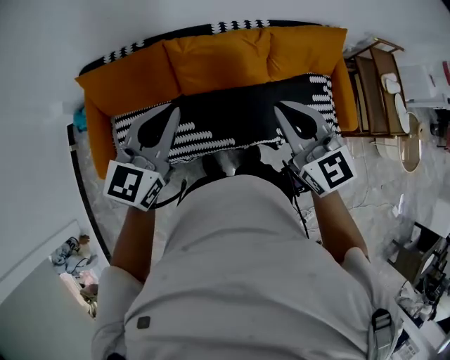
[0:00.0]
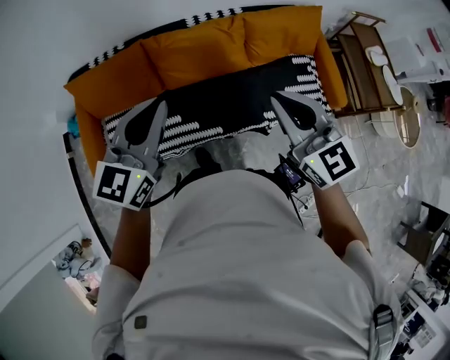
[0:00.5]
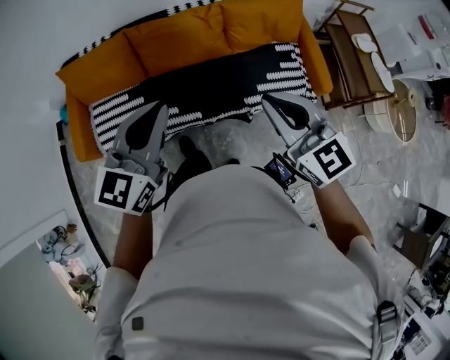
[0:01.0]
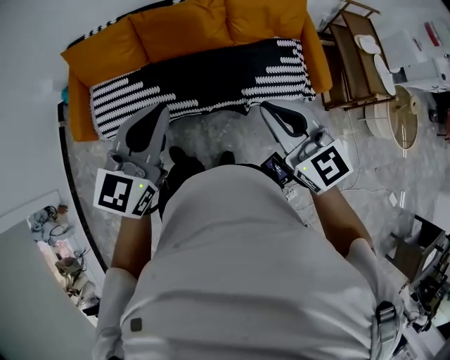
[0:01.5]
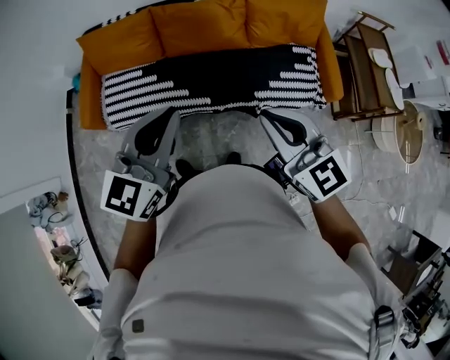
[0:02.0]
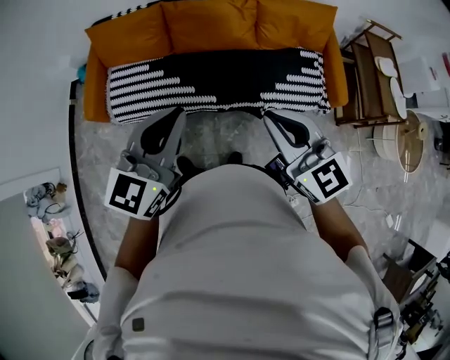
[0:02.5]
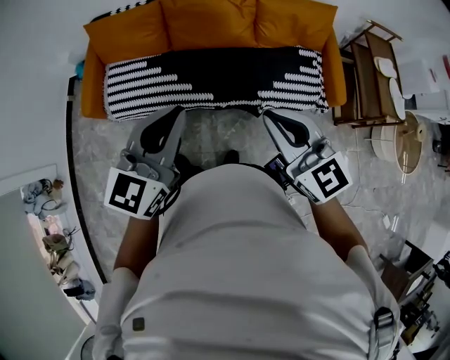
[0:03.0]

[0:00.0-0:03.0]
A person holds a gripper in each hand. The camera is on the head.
0:00.0 to 0:01.5: The two grippers go about 35 cm backward and to the right.
0:01.5 to 0:03.0: The right gripper travels to the left by some 5 cm, while the left gripper ends up about 5 cm from where it was.

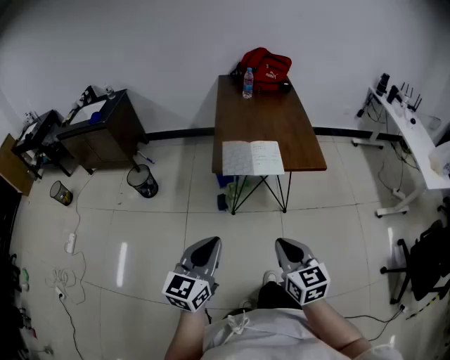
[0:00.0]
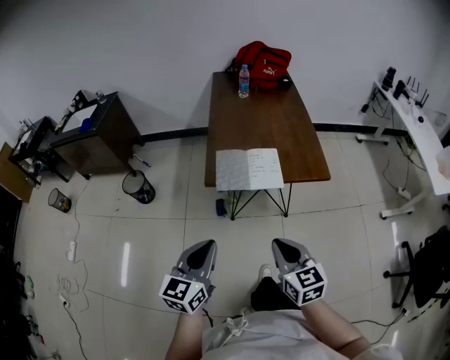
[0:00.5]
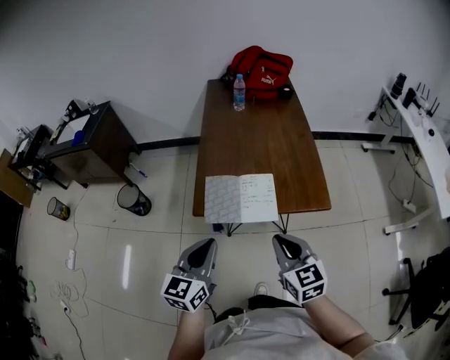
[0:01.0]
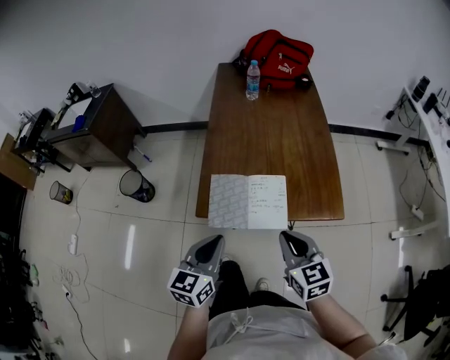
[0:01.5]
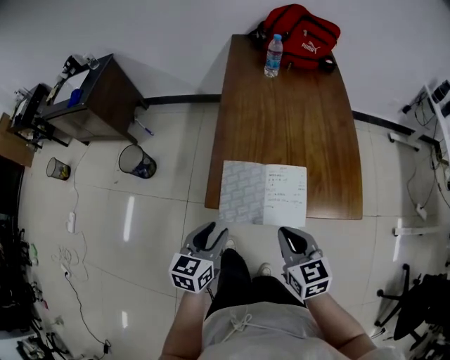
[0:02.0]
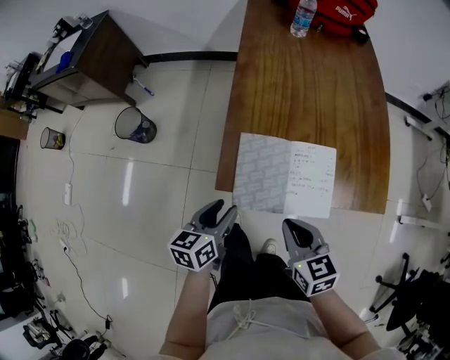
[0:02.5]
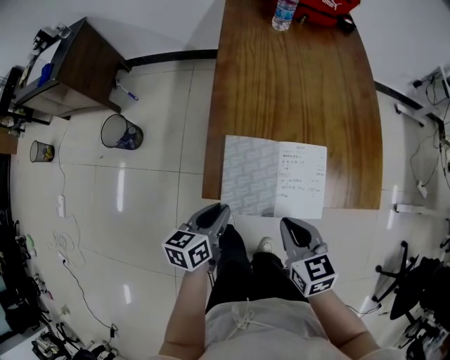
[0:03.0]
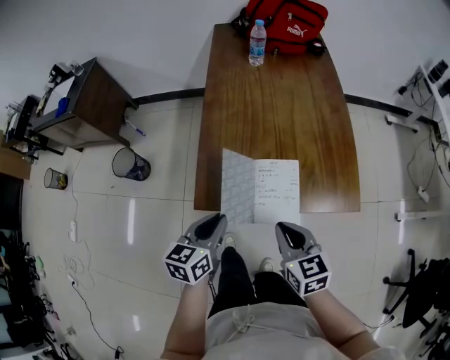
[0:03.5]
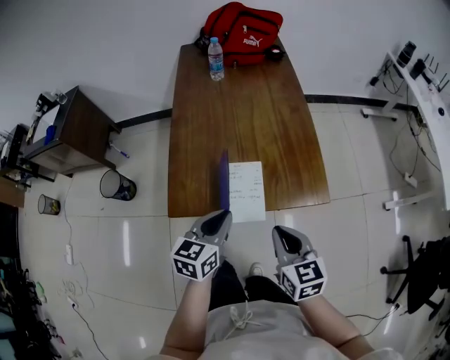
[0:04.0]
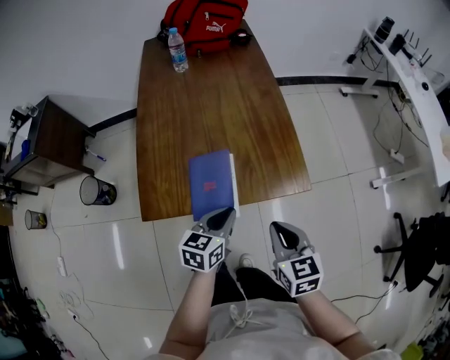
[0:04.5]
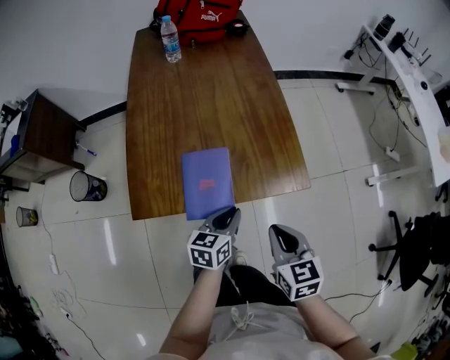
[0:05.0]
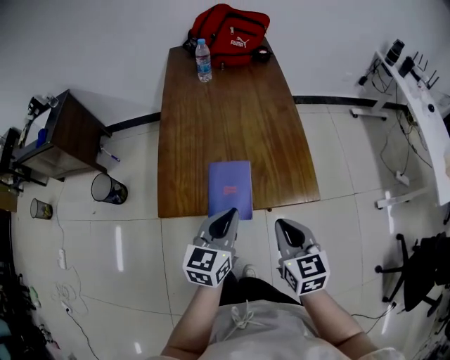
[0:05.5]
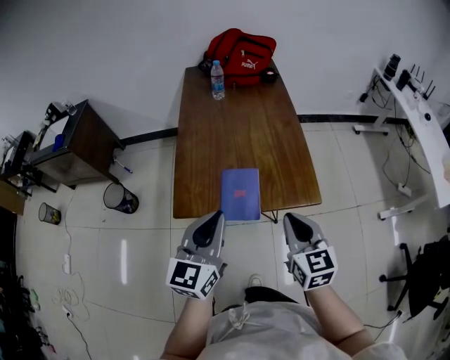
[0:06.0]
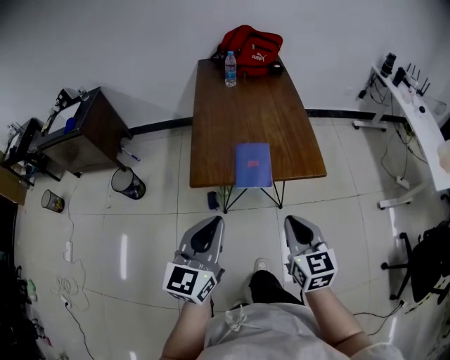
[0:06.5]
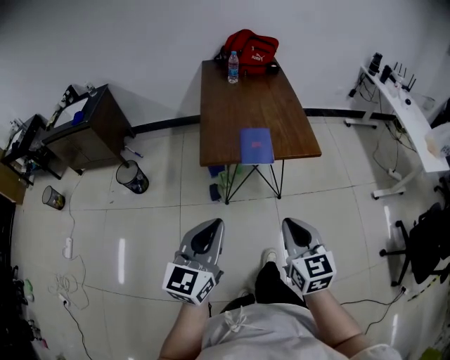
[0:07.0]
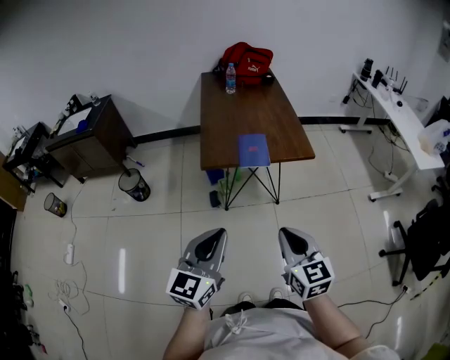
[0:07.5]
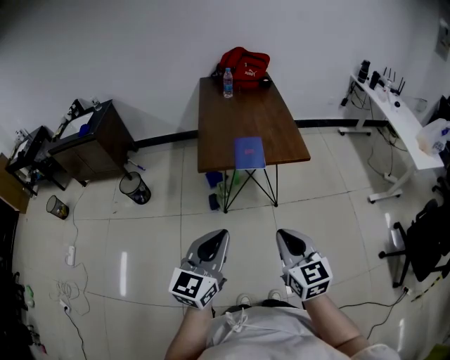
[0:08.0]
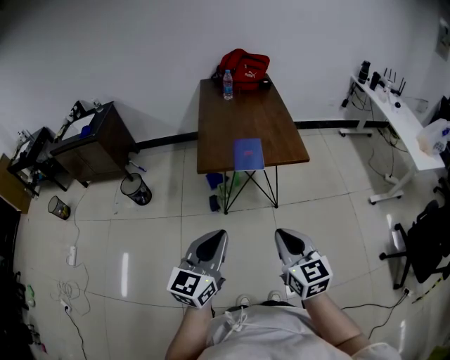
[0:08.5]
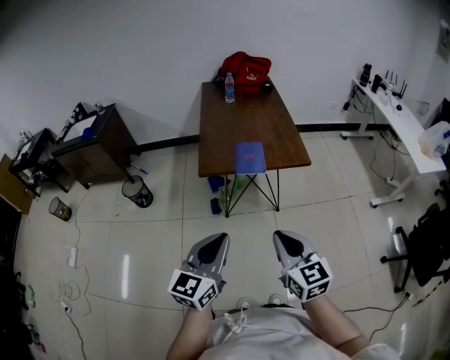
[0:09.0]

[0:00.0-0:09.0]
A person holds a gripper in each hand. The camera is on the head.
0:00.0 to 0:02.0: The left gripper shifts some 40 cm forward and downward, rotates about 20 degrees, and opens; the right gripper heads forward, covering approximately 35 cm.
0:02.0 to 0:04.5: Both grippers move to the right, some 20 cm. The left gripper changes its angle by approximately 20 degrees, and closes up.
0:04.5 to 0:07.0: The left gripper is displaced backward, upward and to the left by some 50 cm, and turns by some 30 degrees; the right gripper moves backward and upward, some 35 cm.
0:07.0 to 0:09.0: The right gripper is displaced backward by roughly 5 cm. The left gripper goes about 10 cm backward and to the right.

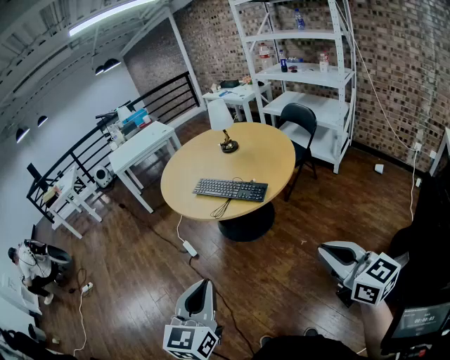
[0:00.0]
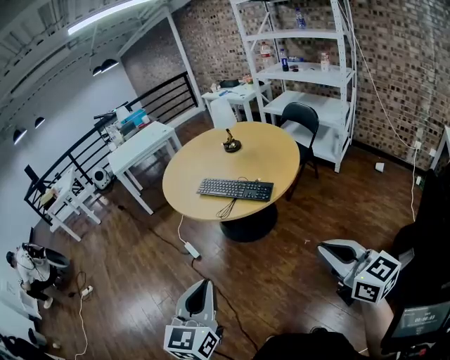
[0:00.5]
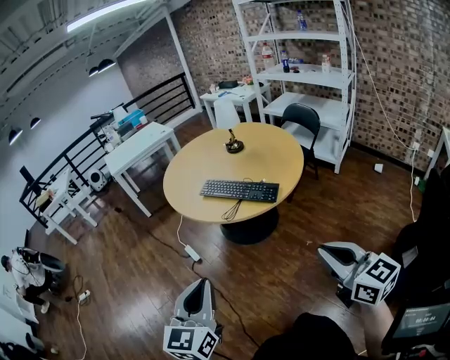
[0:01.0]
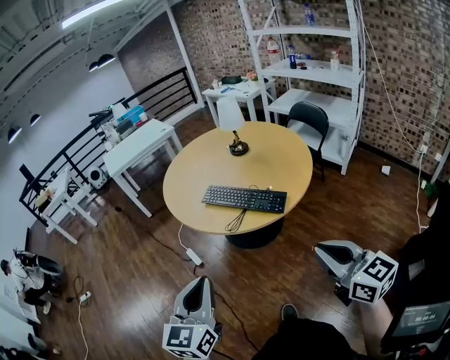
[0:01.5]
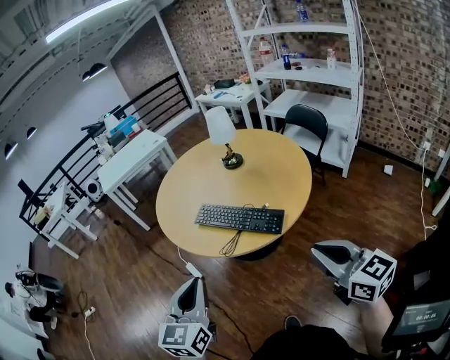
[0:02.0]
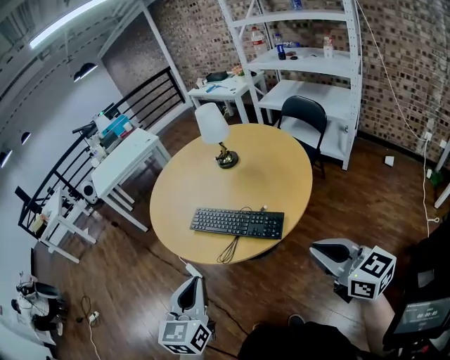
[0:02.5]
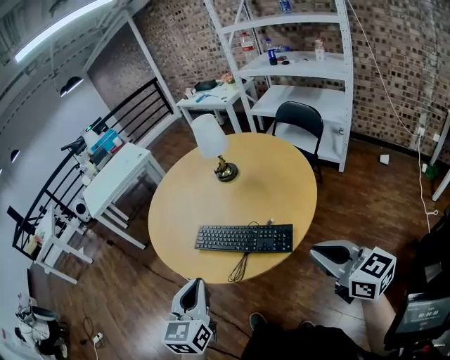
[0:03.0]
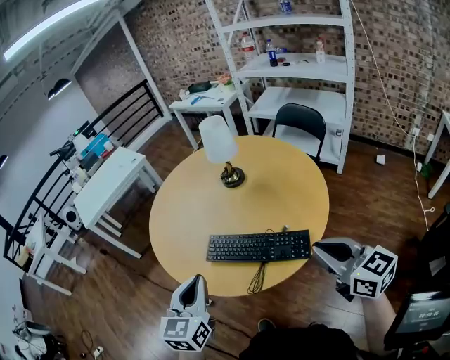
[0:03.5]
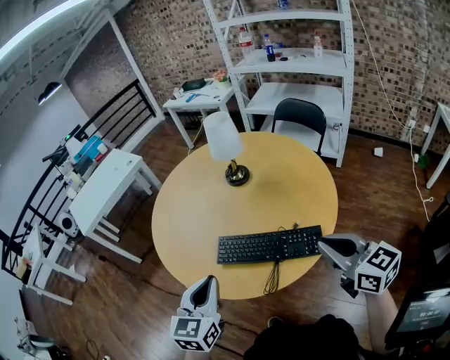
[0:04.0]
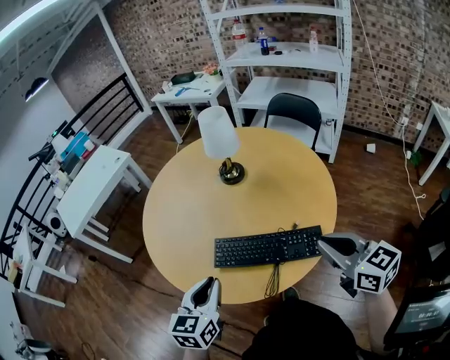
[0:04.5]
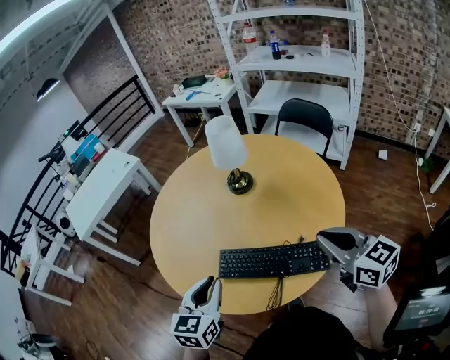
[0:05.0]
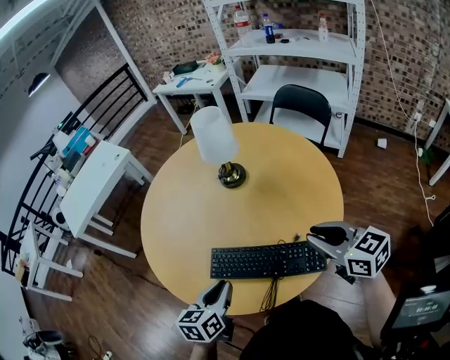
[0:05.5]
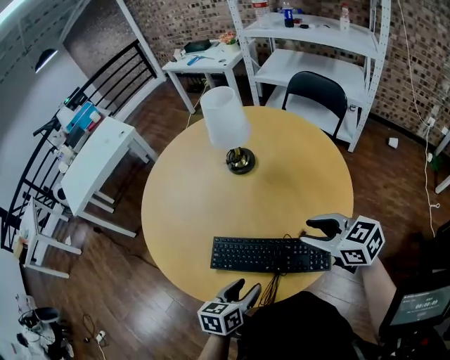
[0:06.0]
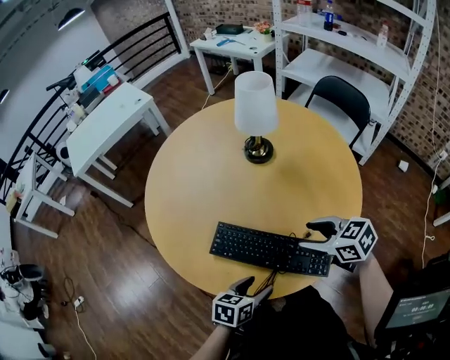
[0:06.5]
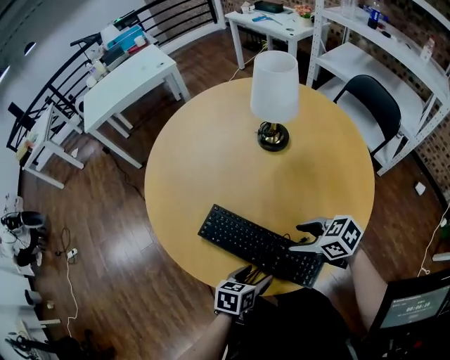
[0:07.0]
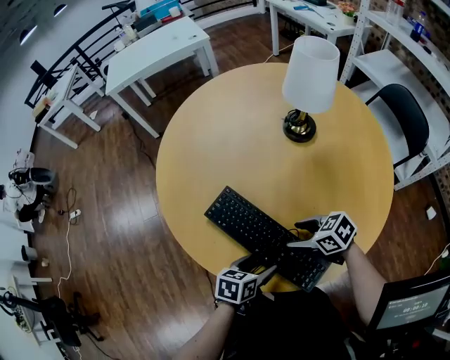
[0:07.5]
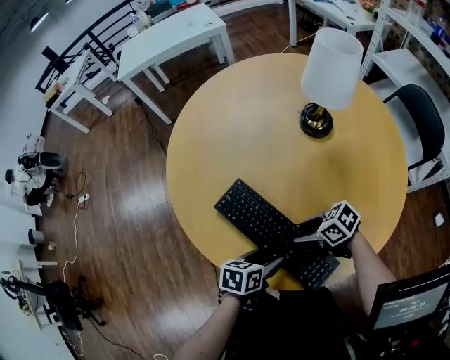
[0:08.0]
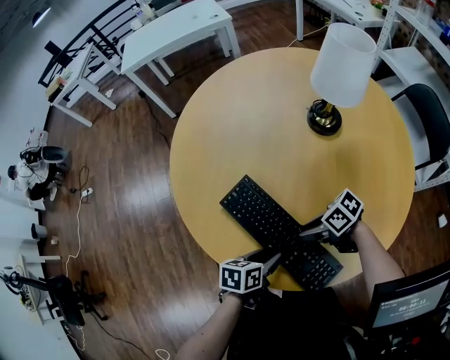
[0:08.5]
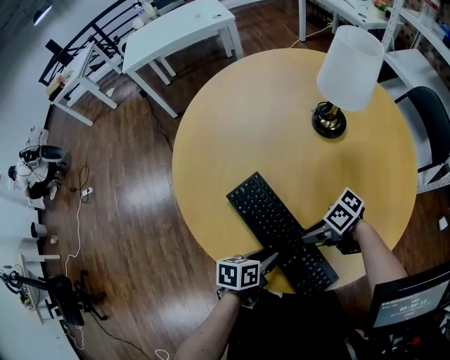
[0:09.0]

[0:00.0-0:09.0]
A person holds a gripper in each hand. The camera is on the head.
0:00.0 to 0:02.0: The two grippers go some 25 cm forward.
0:02.0 to 0:04.5: The right gripper moves forward and to the left, approximately 30 cm. Meanwhile the left gripper moves forward, approximately 35 cm, and changes its angle by some 30 degrees.
0:04.5 to 0:07.0: Both grippers travel together downward, roughly 25 cm. The left gripper turns by about 40 degrees, and opens its fingers. The right gripper changes its angle by some 60 degrees, and opens up.
0:07.0 to 0:09.0: The left gripper ends up about 5 cm from where it was, rotates about 30 degrees, and closes; the right gripper heads downward, covering approximately 10 cm, turns by roughly 40 degrees, and closes its fingers.

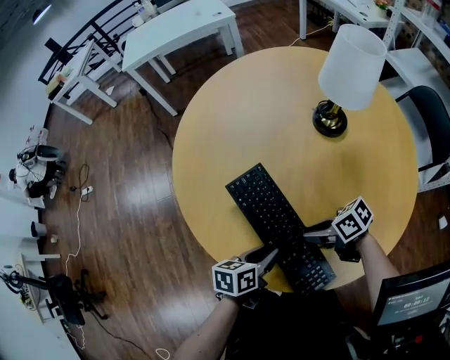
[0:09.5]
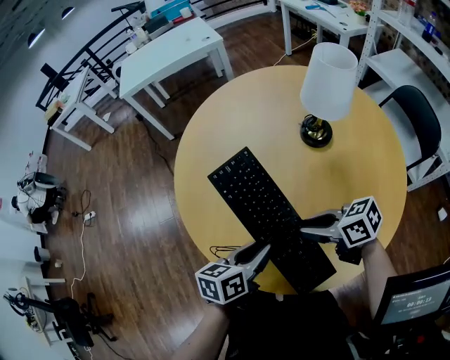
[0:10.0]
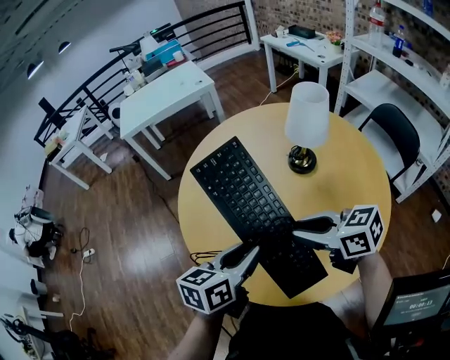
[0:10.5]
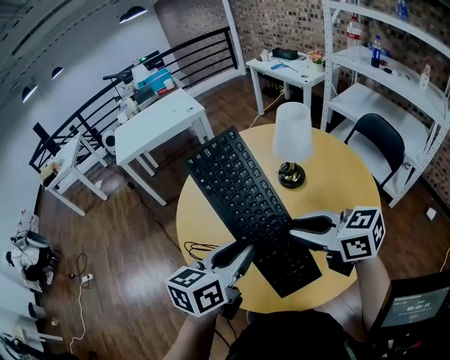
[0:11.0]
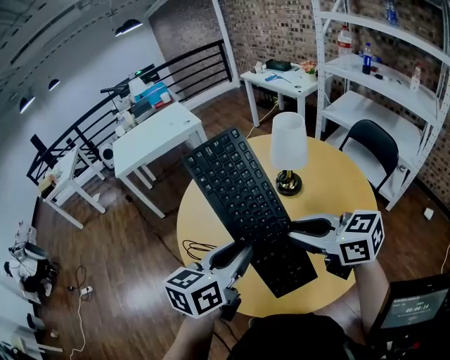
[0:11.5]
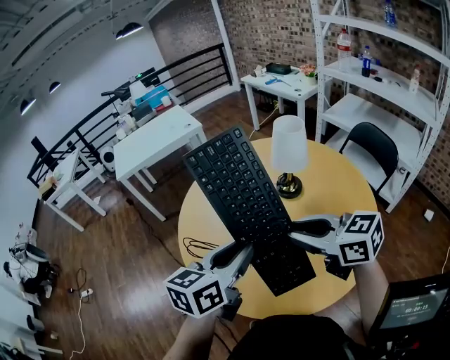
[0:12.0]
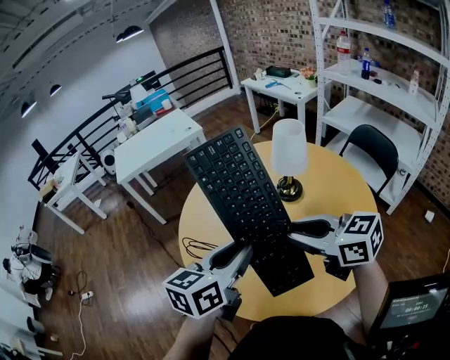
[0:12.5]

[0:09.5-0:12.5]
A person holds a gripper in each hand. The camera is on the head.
0:09.5 to 0:11.0: Both grippers travel together upward, approximately 35 cm. The left gripper changes its angle by approximately 30 degrees, while the right gripper turns by some 50 degrees.
0:11.0 to 0:12.5: The grippers move only a little.

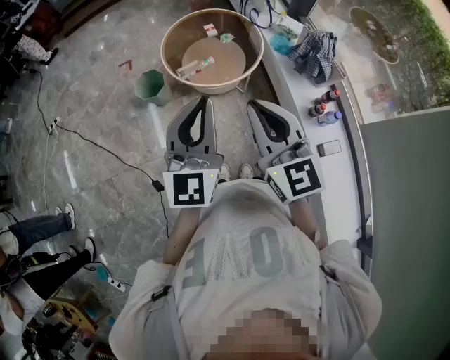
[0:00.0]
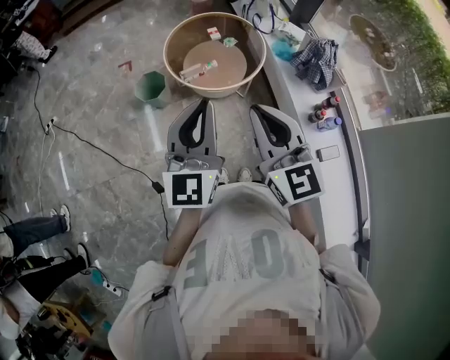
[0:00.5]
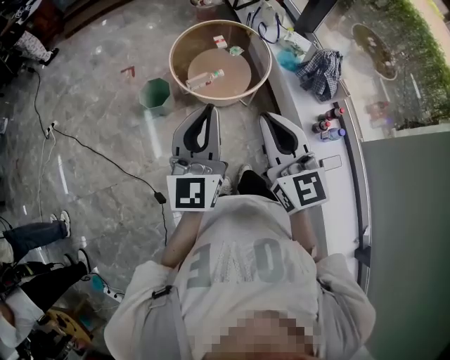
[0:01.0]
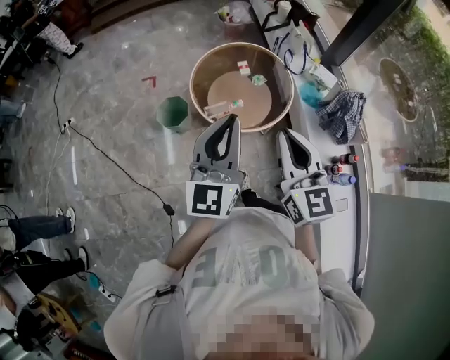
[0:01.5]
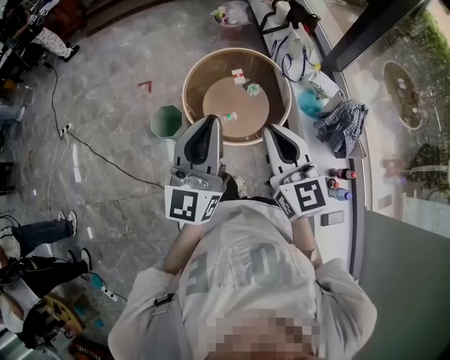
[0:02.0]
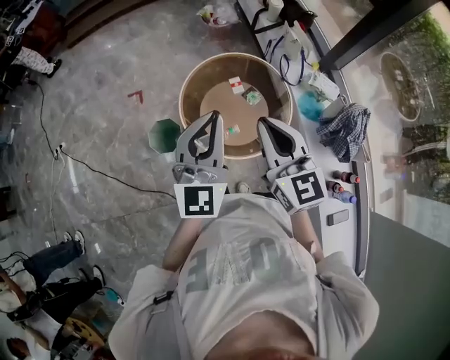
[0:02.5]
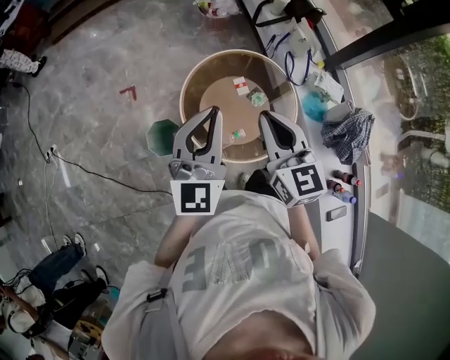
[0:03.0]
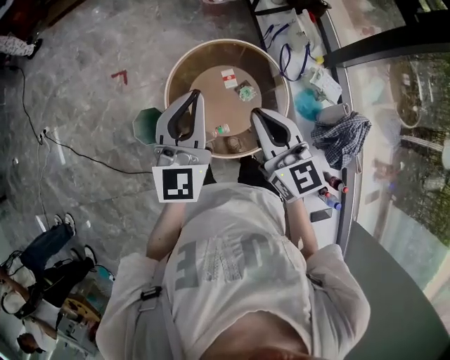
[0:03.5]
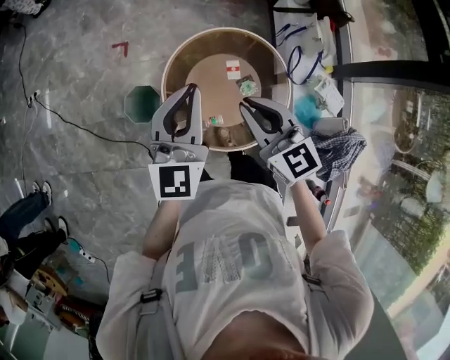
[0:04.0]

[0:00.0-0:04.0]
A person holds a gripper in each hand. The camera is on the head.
0:00.0 to 0:02.0: Both grippers move forward, approximately 25 cm.
0:02.0 to 0:04.0: The left gripper ends up roughly 30 cm from where it was, and rotates roughly 20 degrees. Meanwhile the right gripper moves about 30 cm, and turns by roughly 30 degrees.
